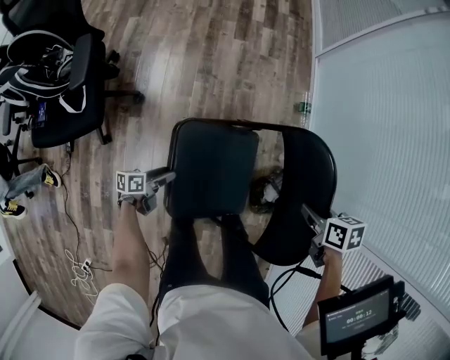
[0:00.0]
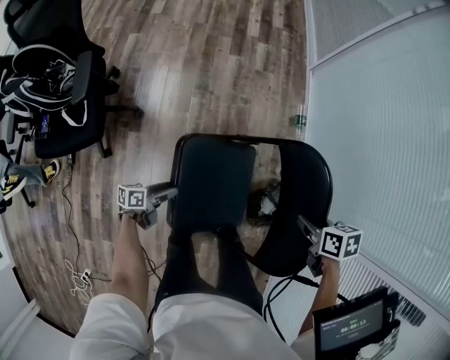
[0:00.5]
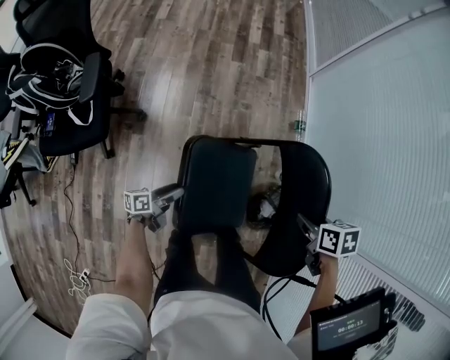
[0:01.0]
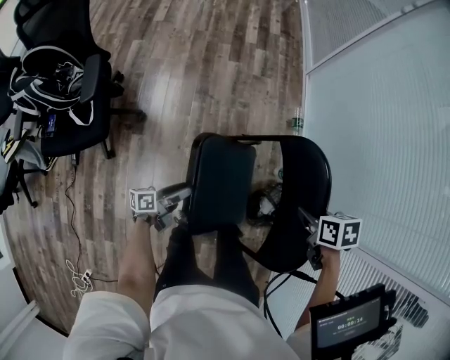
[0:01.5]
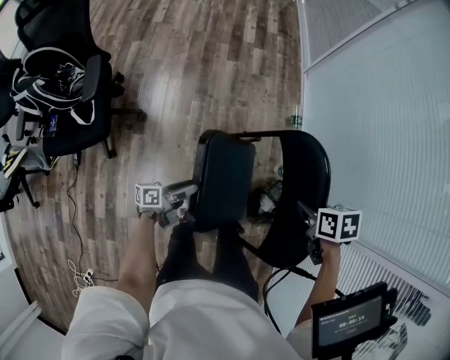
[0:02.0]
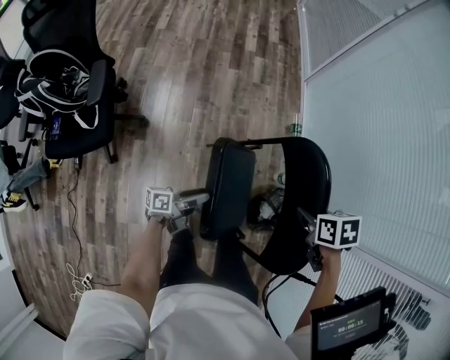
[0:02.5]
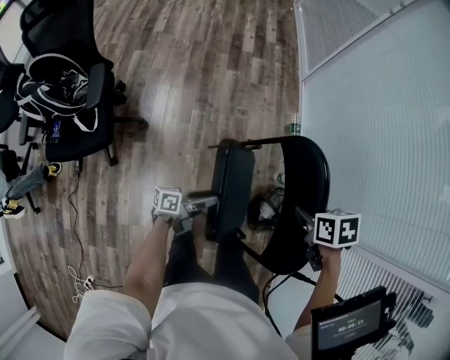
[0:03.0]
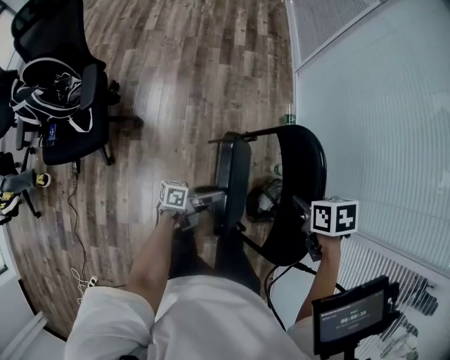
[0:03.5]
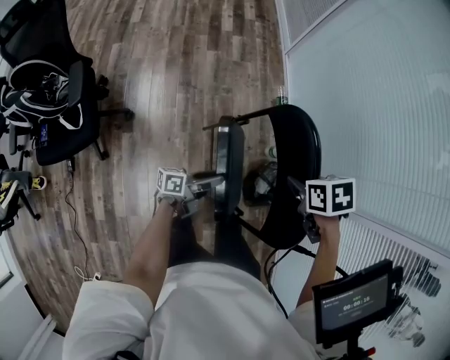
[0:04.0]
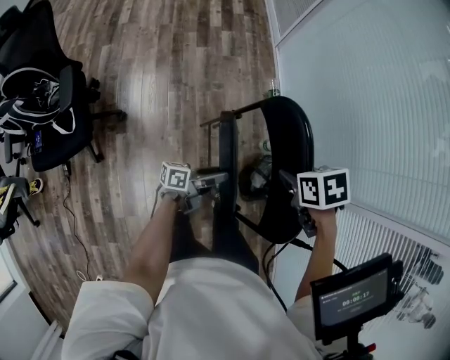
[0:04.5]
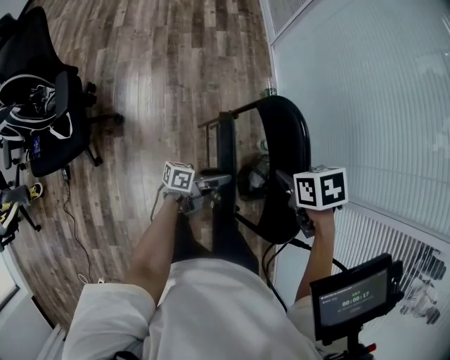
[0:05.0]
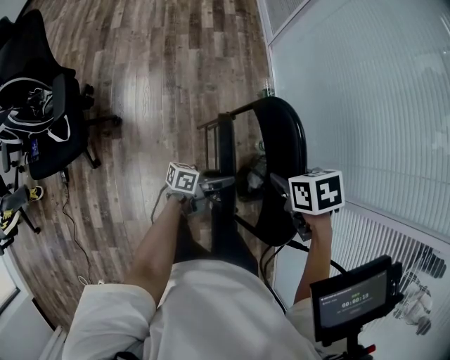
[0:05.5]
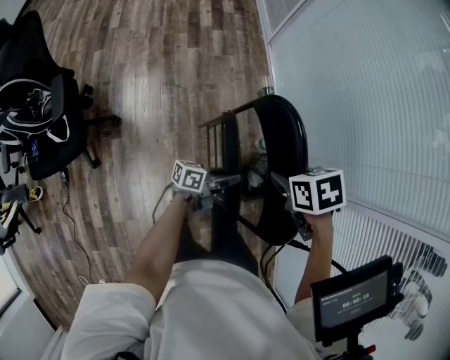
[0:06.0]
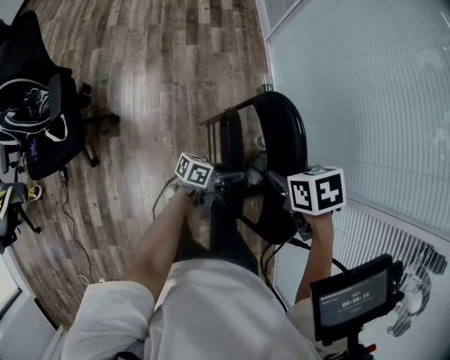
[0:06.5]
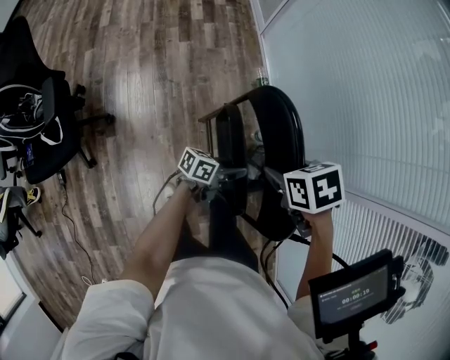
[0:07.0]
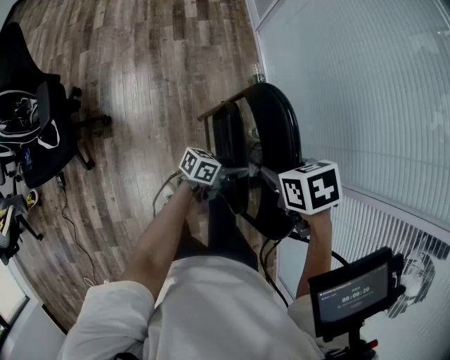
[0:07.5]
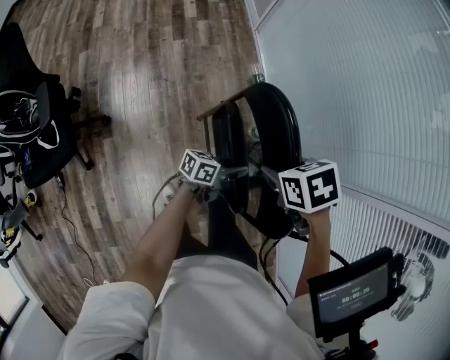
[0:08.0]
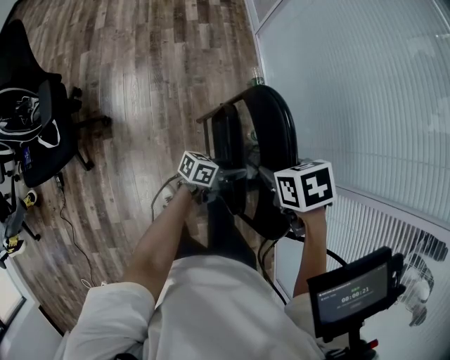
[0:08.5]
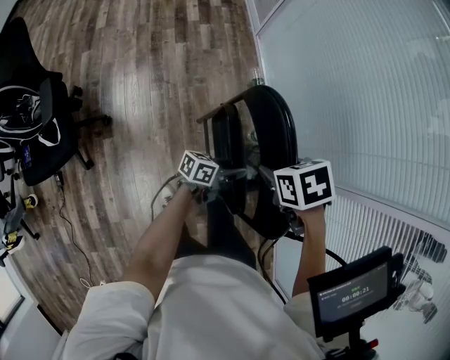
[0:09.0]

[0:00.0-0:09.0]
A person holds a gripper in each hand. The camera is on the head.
0:00.0 to 0:02.0: The left gripper moves to the right and upward, roughly 15 cm.
0:02.0 to 0:04.5: The left gripper is displaced to the right by roughly 15 cm, and turns by approximately 20 degrees.
0:04.5 to 0:07.0: The left gripper ends up about 10 cm from where it was, and swivels roughly 20 degrees.
0:07.0 to 0:09.0: Both grippers stay put.

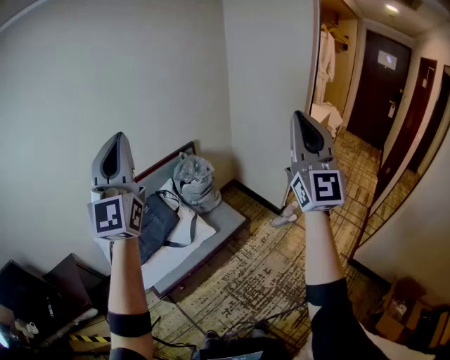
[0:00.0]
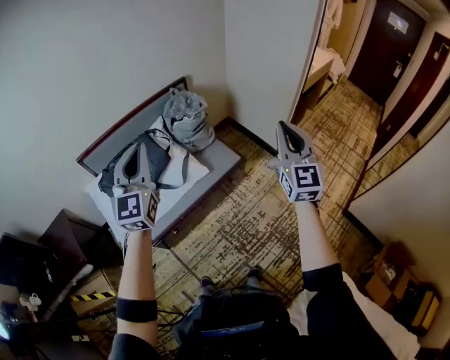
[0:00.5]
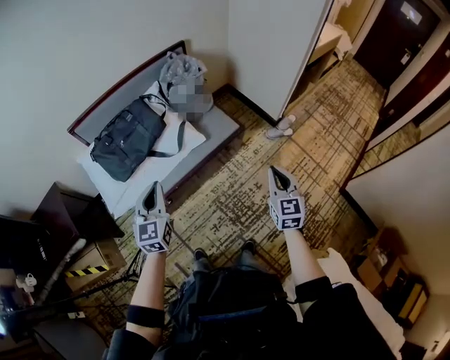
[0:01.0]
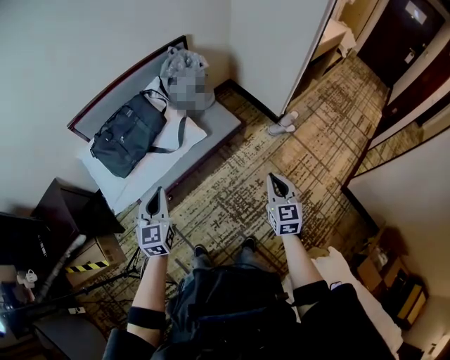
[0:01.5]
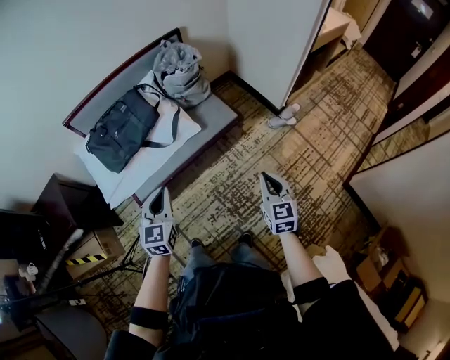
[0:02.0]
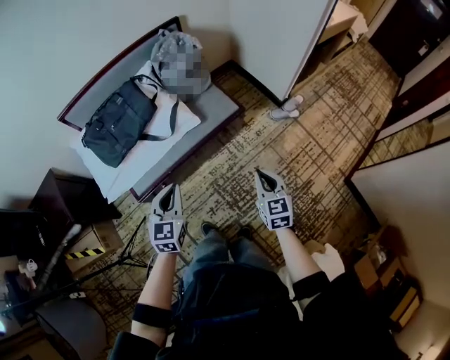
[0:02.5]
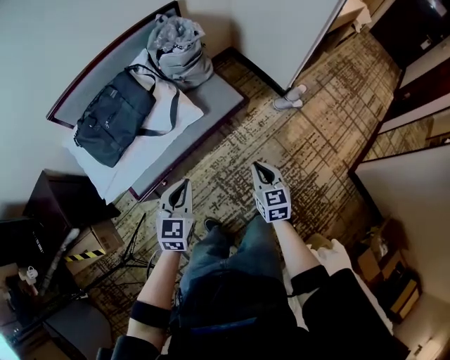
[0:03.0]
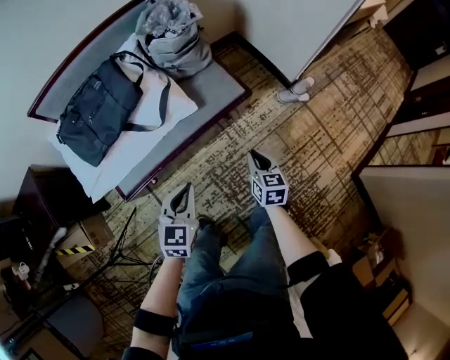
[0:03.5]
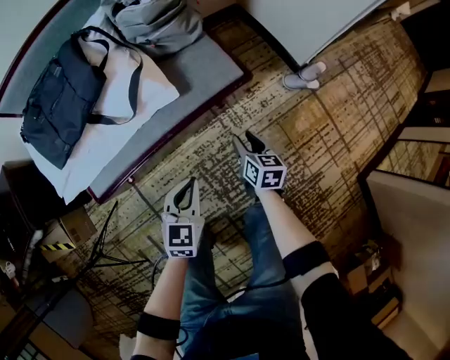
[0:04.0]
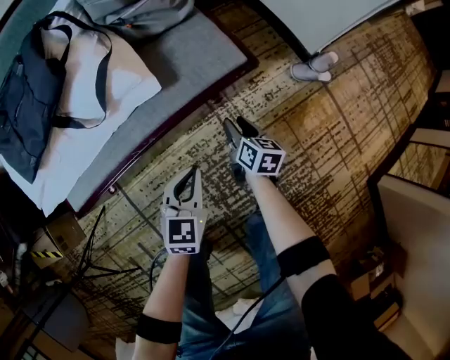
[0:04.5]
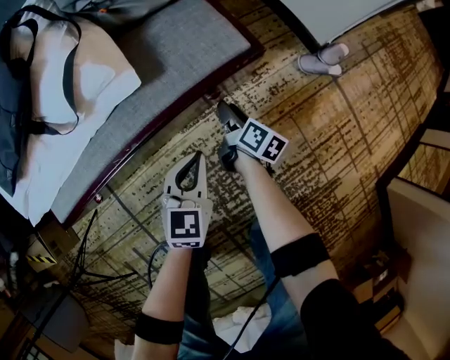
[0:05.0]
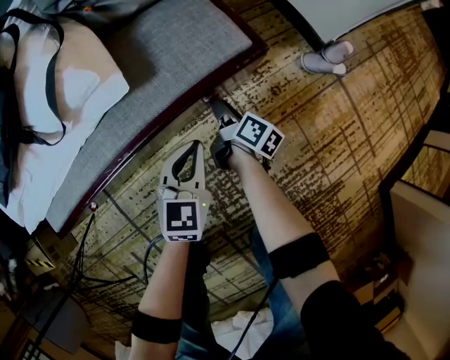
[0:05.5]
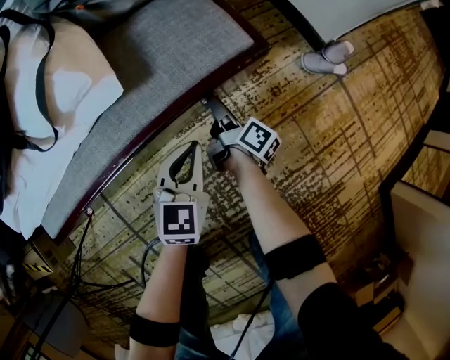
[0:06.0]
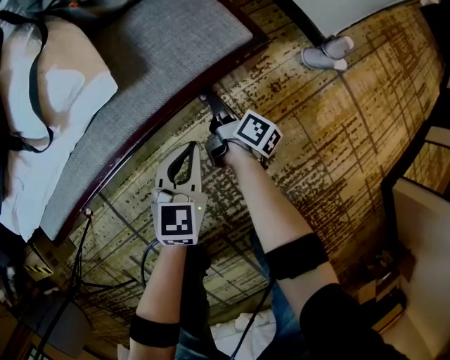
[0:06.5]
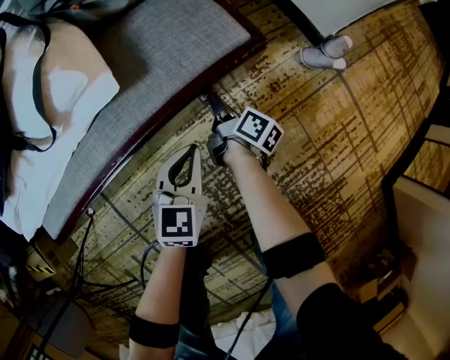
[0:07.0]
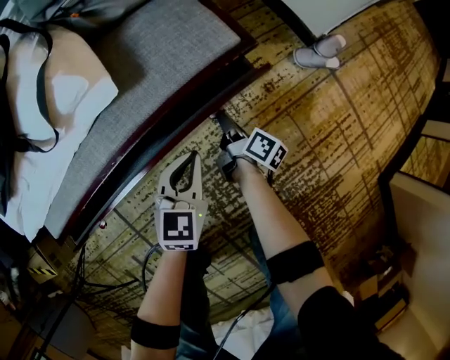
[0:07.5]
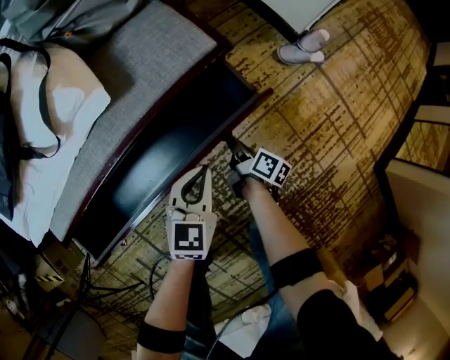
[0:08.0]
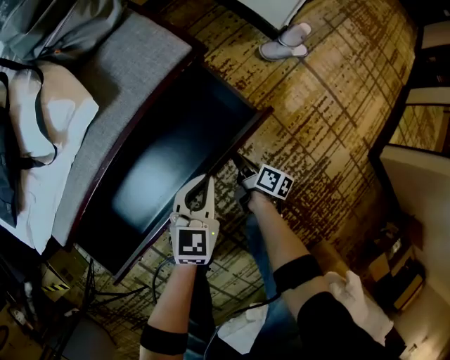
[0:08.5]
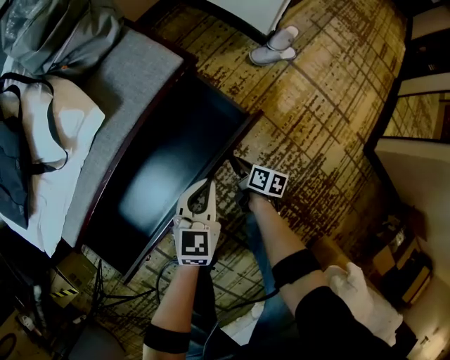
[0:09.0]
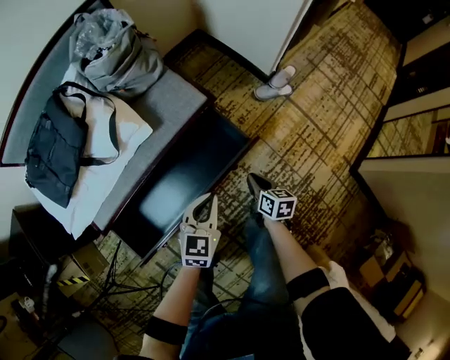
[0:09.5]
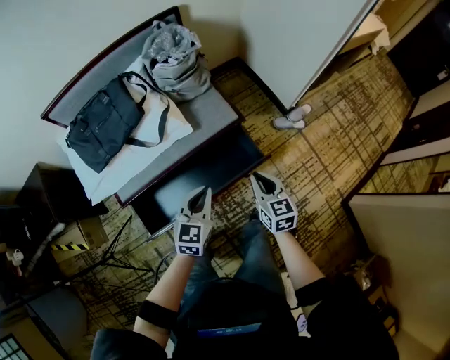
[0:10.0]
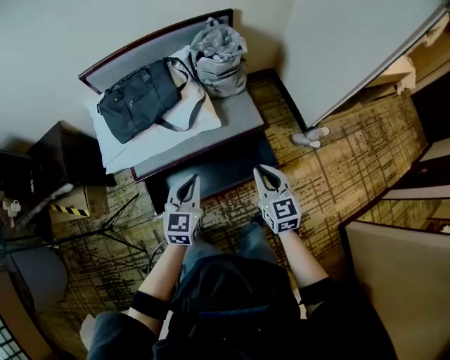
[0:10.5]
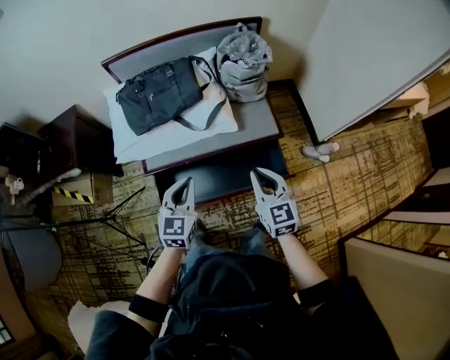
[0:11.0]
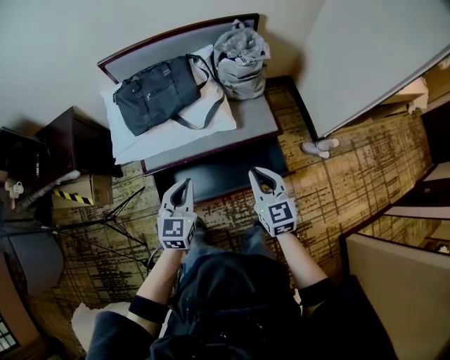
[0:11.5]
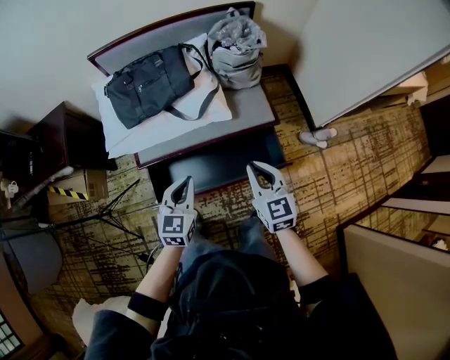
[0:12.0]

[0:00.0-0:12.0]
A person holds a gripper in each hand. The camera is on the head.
0:00.0 to 0:02.0: Both grippers move downward, roughly 50 cm. The left gripper tilts its fingers some 50 degrees downward. Meanwhile the right gripper angles its fingers downward, by some 60 degrees.
0:02.0 to 0:04.0: The right gripper heads downward and forward, covering about 50 cm, turns by roughly 30 degrees, and opens up. The left gripper heads downward, to the right and forward, covering roughly 40 cm.
0:04.0 to 0:06.0: Both grippers travel together downward and forward, about 30 cm. The right gripper twists some 50 degrees clockwise, seen from behind.
0:06.0 to 0:08.0: The right gripper is displaced backward and to the right by approximately 15 cm; the left gripper shifts approximately 10 cm backward and to the right.
0:08.0 to 0:10.0: Both grippers move upward, some 50 cm. The right gripper rotates around the line of its fingers by roughly 70 degrees, counterclockwise from behind.
0:10.0 to 0:12.0: The left gripper goes roughly 20 cm to the left, and changes its angle by some 20 degrees, while the right gripper travels to the left and upward by about 20 cm, and swivels roughly 20 degrees.

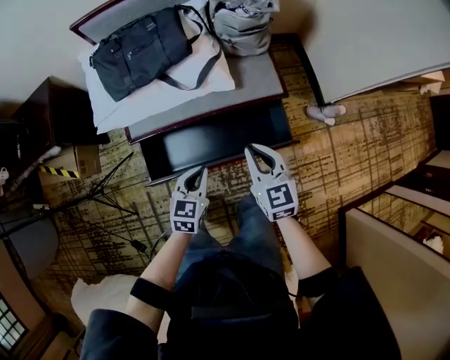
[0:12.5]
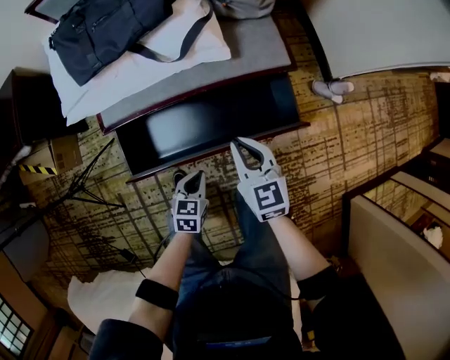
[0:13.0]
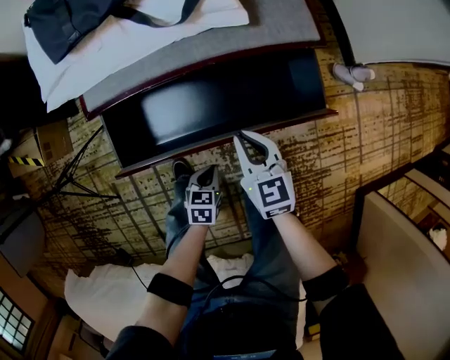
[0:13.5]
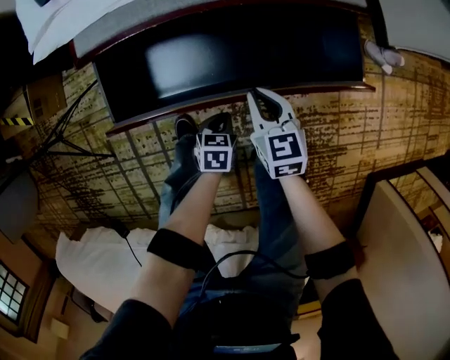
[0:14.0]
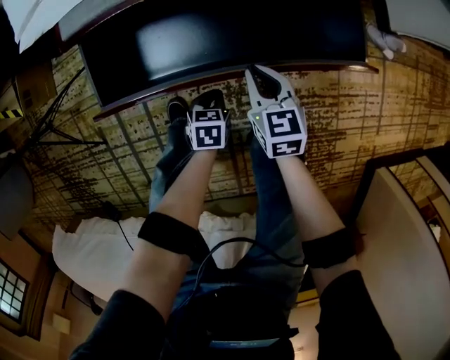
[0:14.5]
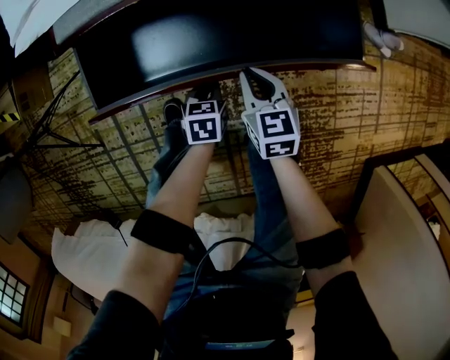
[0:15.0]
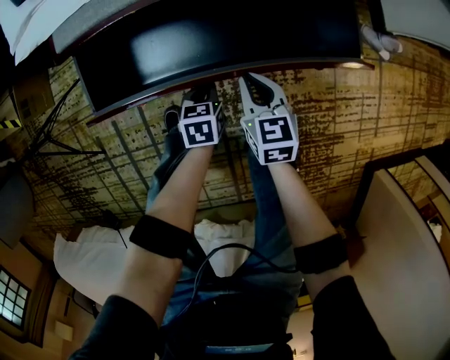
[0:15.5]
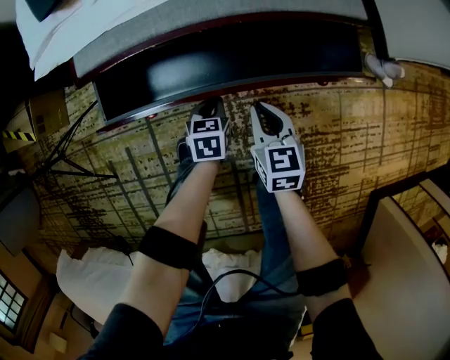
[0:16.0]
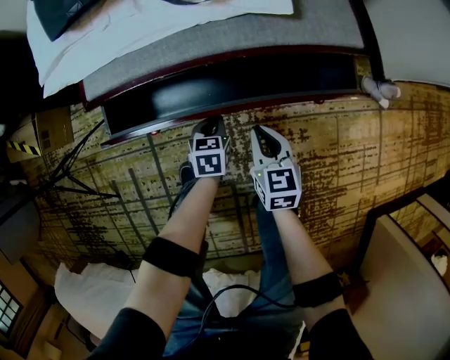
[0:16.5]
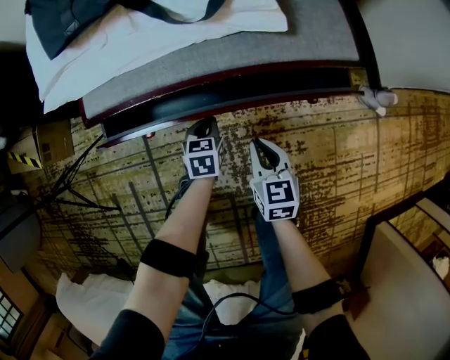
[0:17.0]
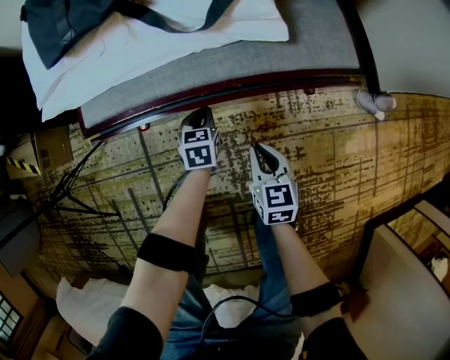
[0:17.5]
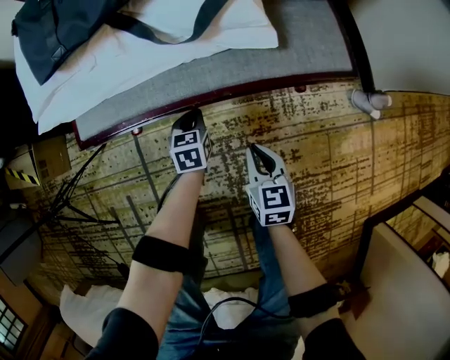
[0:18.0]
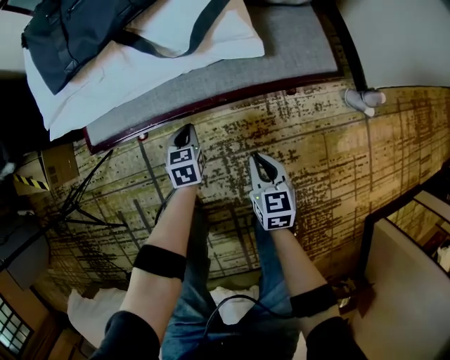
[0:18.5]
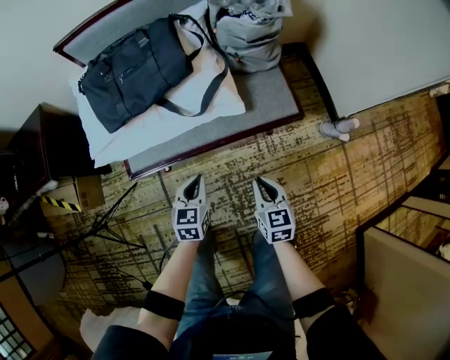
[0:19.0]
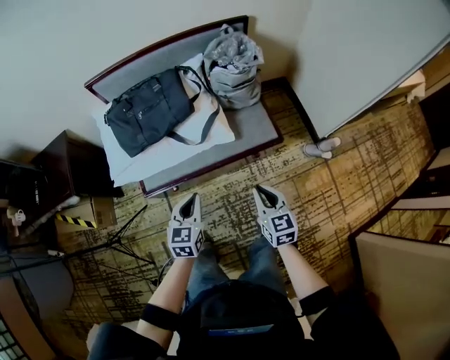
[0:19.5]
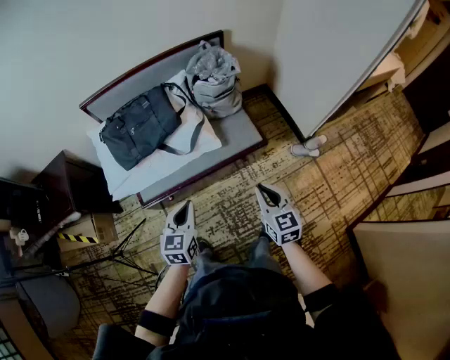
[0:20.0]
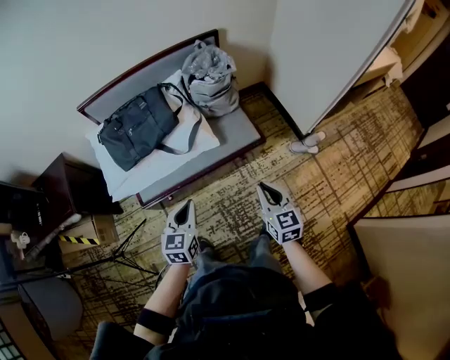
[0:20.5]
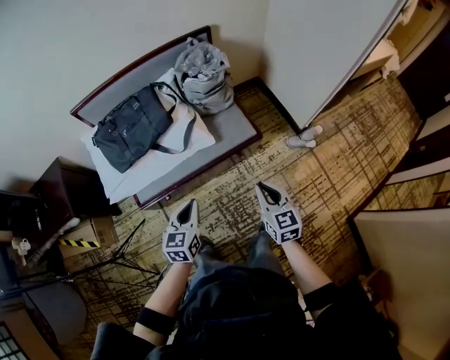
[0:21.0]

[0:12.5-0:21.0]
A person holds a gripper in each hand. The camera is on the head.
0:12.5 to 0:14.5: Both grippers travel together downward, roughly 50 cm. The left gripper rotates roughly 30 degrees.
0:14.5 to 0:16.5: The right gripper is displaced forward by about 5 cm, while the left gripper shifts roughly 15 cm forward.
0:16.5 to 0:19.0: The two grippers go about 30 cm upward. The left gripper swivels some 20 degrees.
0:19.0 to 0:21.0: Both grippers travel together upward, some 25 cm.
